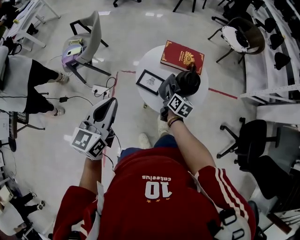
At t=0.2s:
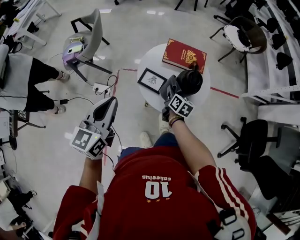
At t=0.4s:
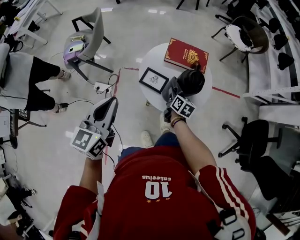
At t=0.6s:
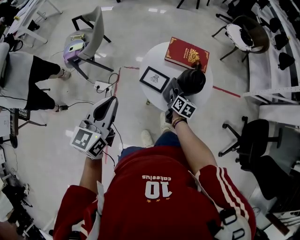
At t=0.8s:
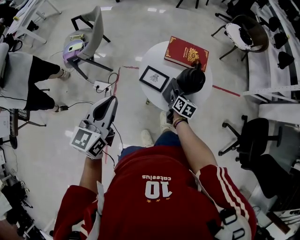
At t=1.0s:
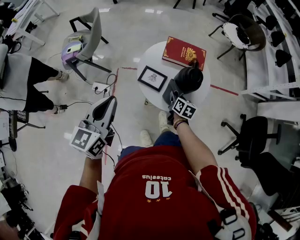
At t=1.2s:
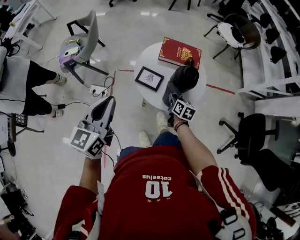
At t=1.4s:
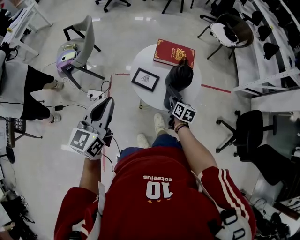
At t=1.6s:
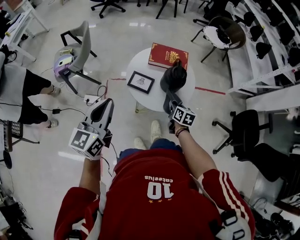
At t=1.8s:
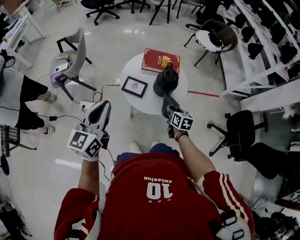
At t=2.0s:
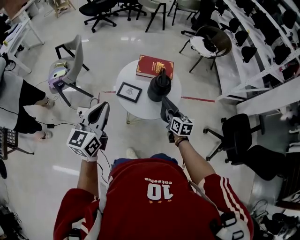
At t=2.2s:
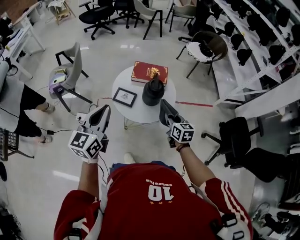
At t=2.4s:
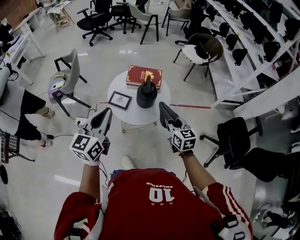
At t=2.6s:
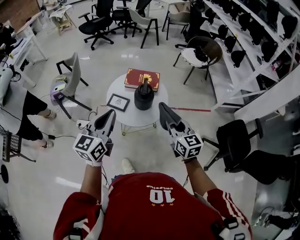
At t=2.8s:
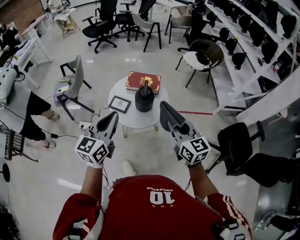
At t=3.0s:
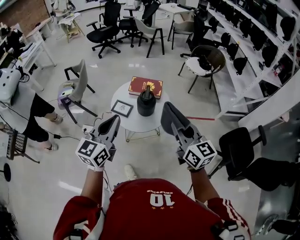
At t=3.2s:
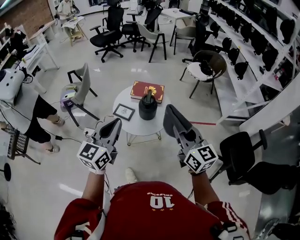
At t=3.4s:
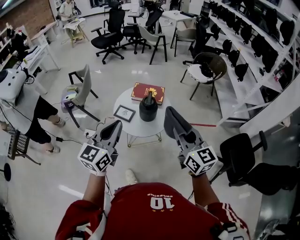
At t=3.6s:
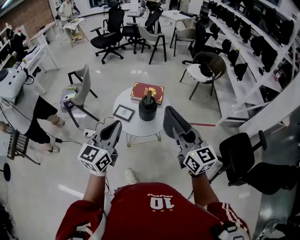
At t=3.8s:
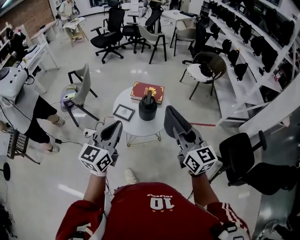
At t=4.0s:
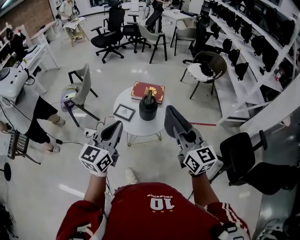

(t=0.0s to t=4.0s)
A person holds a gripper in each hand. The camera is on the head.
t=0.0s - t=1.4s: The right gripper is displaced backward and to the right by about 10 cm.
t=1.4s - t=2.6s: The right gripper shifts roughly 35 cm upward, to the right and backward, and swivels approximately 40 degrees; the left gripper heads to the right, covering about 20 cm.
t=2.6s - t=4.0s: The right gripper heads upward and backward, covering approximately 15 cm. Meanwhile the left gripper travels backward by roughly 5 cm.

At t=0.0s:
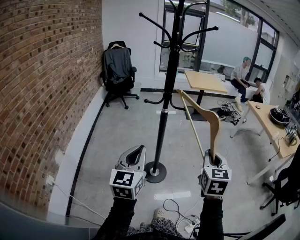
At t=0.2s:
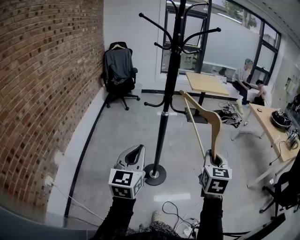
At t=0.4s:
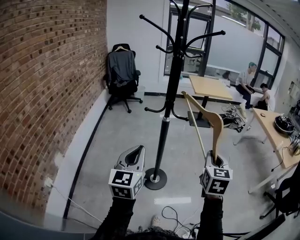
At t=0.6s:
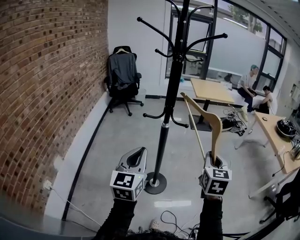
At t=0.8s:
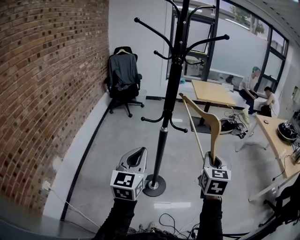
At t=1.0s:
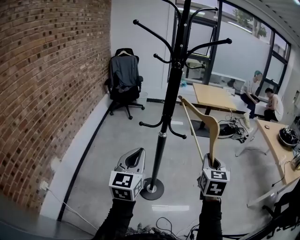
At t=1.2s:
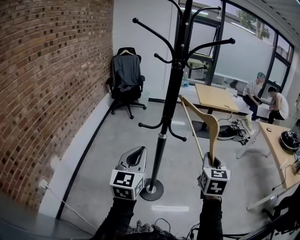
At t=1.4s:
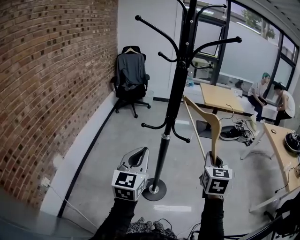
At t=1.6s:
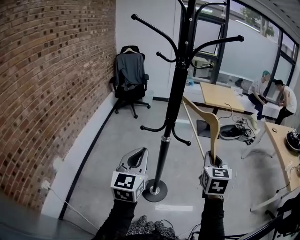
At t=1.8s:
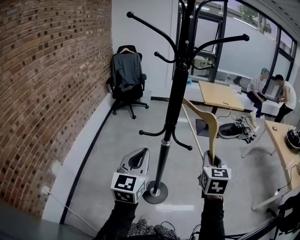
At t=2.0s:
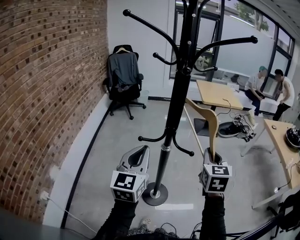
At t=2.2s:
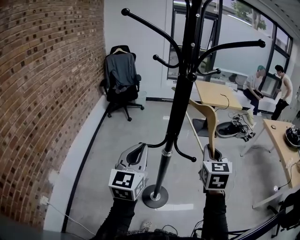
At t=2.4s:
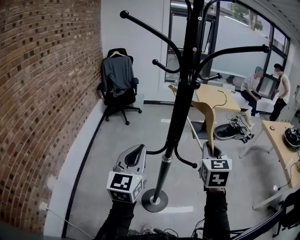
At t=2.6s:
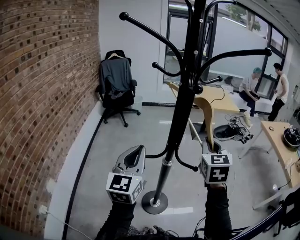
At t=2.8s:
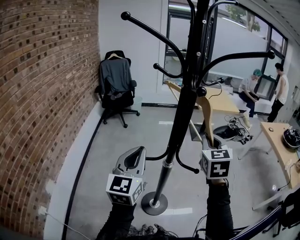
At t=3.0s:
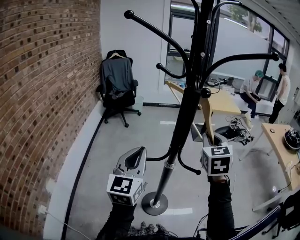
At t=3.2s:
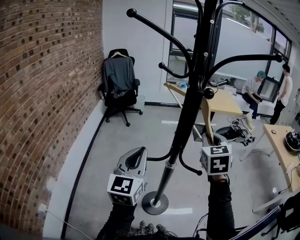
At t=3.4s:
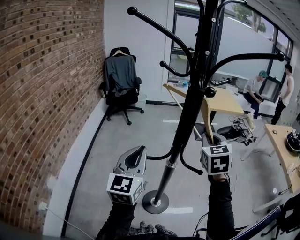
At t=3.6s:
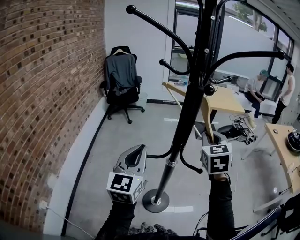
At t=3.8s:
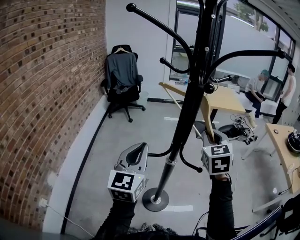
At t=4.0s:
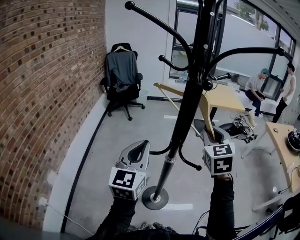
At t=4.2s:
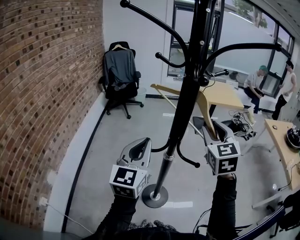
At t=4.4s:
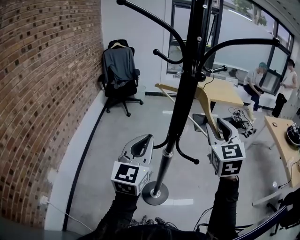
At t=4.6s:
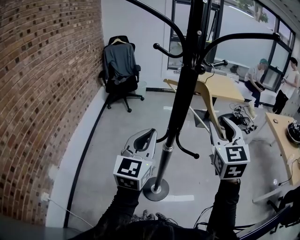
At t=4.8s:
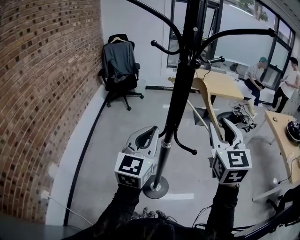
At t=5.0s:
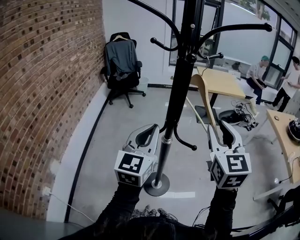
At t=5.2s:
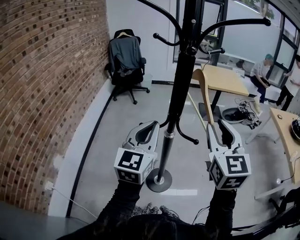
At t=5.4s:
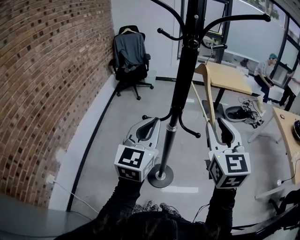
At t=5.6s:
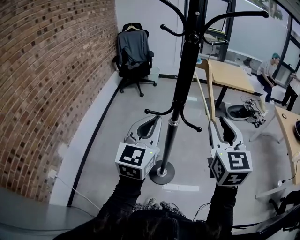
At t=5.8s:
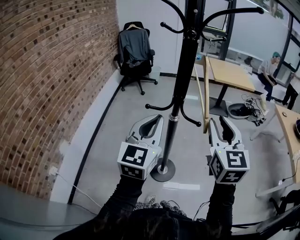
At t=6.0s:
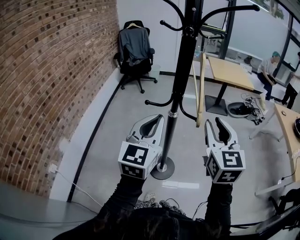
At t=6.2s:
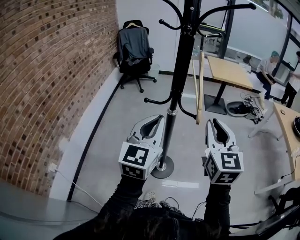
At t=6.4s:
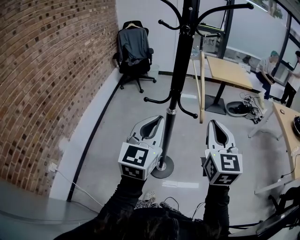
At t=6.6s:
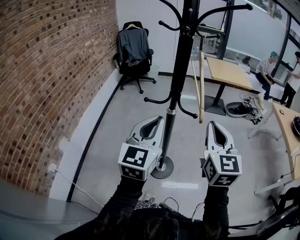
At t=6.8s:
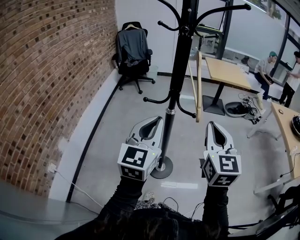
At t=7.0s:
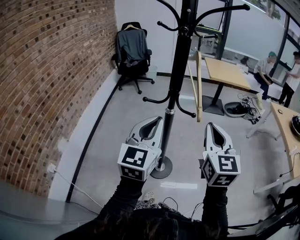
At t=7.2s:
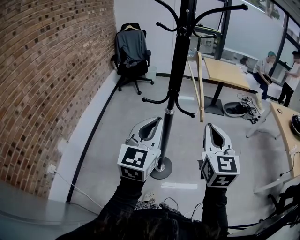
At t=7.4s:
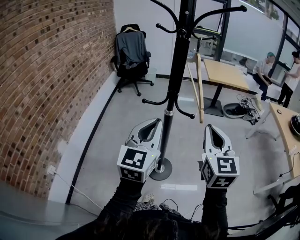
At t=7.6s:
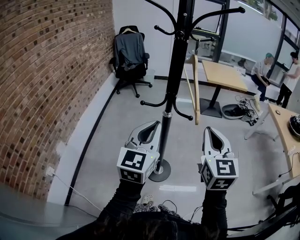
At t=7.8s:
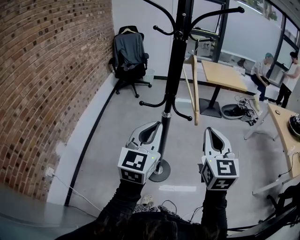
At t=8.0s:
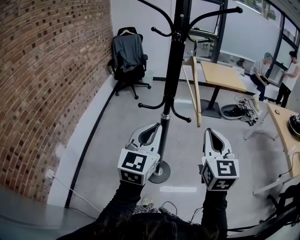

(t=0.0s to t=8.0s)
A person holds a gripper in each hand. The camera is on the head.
t=0.0s - t=1.6s: The two grippers go some 20 cm forward.
t=1.6s - t=3.2s: The two grippers go some 15 cm forward and to the left.
t=3.2s - t=4.8s: The left gripper is displaced to the right by about 5 cm. Meanwhile the right gripper travels backward and upward by roughly 10 cm, and opens up.
t=4.8s - t=6.4s: The right gripper travels backward and downward by roughly 15 cm, and closes up. The left gripper is displaced backward by approximately 15 cm.
t=6.4s - t=8.0s: The grippers move only a little.

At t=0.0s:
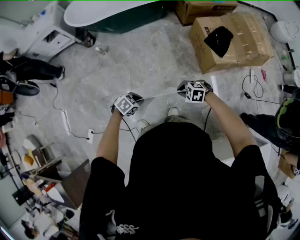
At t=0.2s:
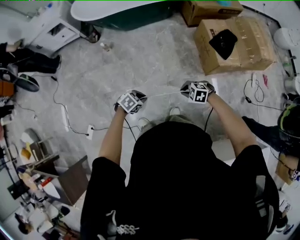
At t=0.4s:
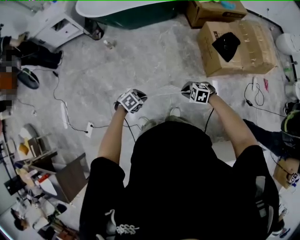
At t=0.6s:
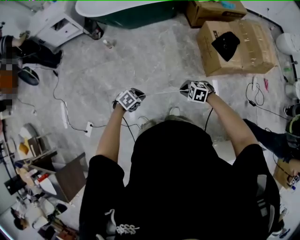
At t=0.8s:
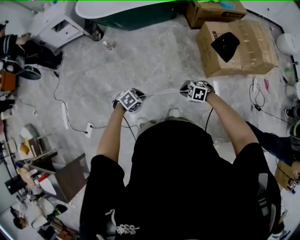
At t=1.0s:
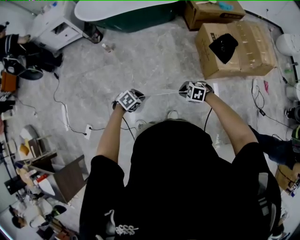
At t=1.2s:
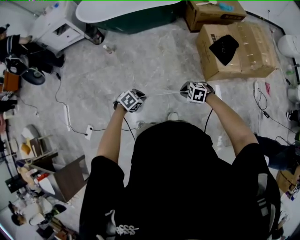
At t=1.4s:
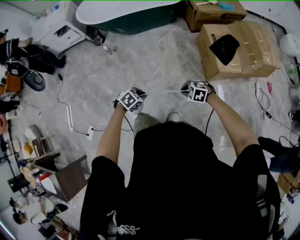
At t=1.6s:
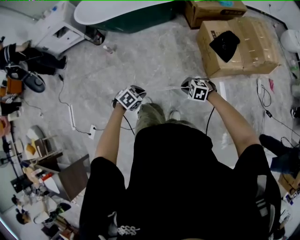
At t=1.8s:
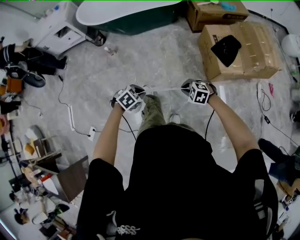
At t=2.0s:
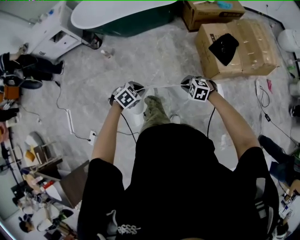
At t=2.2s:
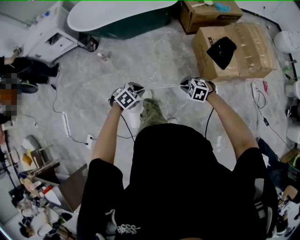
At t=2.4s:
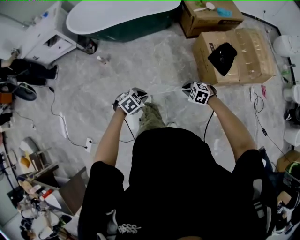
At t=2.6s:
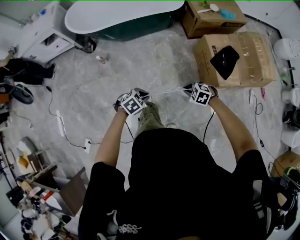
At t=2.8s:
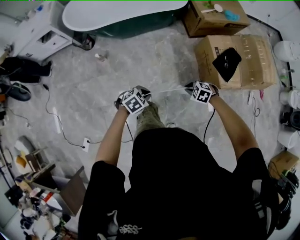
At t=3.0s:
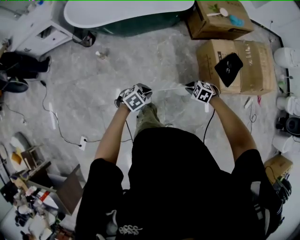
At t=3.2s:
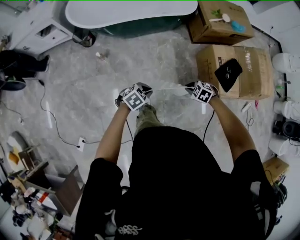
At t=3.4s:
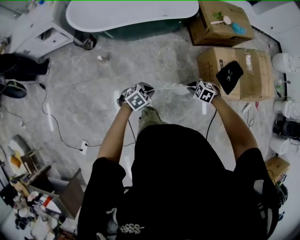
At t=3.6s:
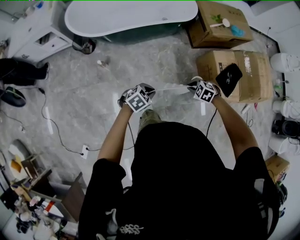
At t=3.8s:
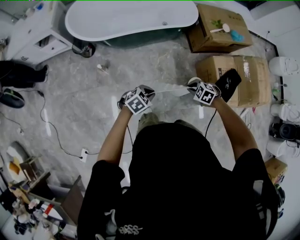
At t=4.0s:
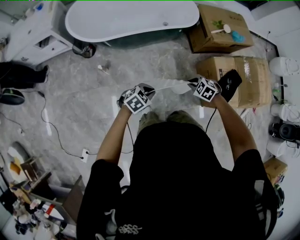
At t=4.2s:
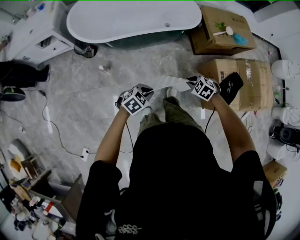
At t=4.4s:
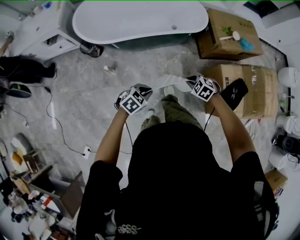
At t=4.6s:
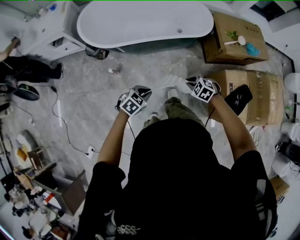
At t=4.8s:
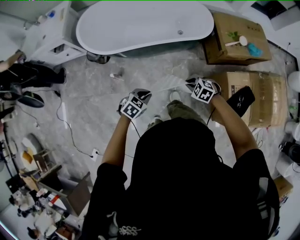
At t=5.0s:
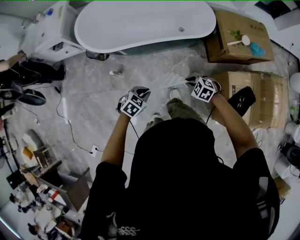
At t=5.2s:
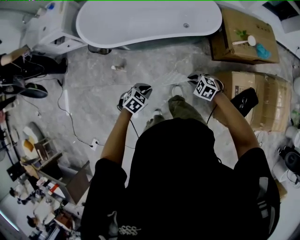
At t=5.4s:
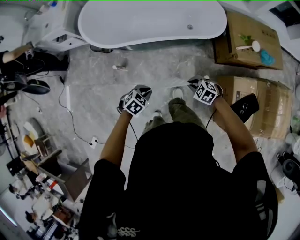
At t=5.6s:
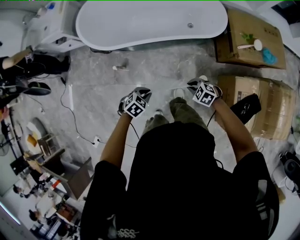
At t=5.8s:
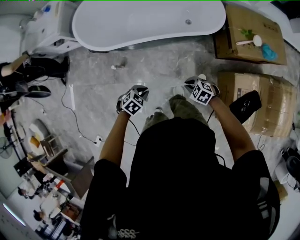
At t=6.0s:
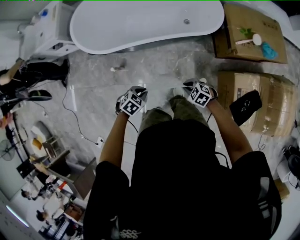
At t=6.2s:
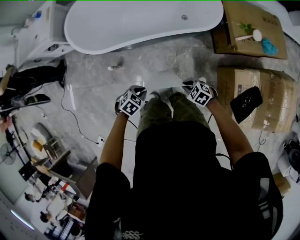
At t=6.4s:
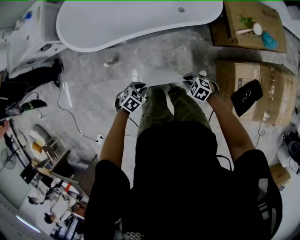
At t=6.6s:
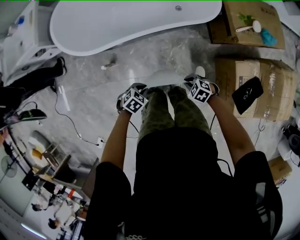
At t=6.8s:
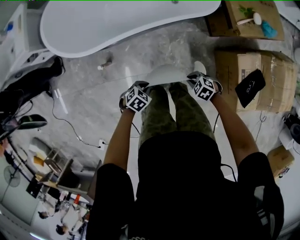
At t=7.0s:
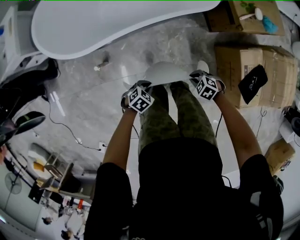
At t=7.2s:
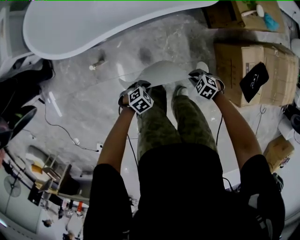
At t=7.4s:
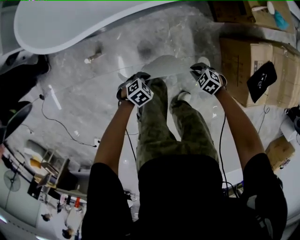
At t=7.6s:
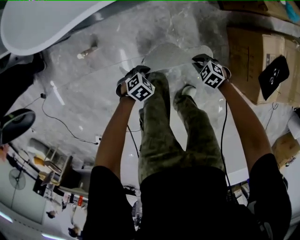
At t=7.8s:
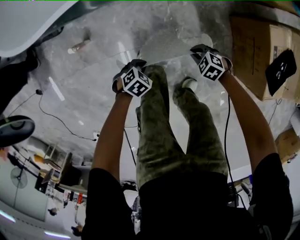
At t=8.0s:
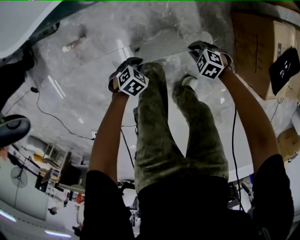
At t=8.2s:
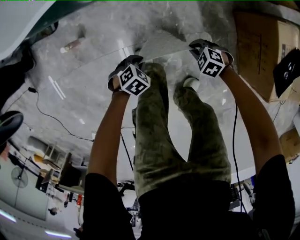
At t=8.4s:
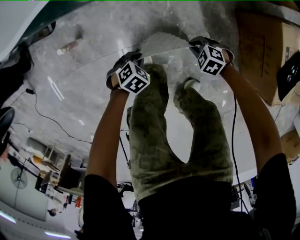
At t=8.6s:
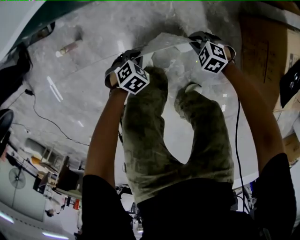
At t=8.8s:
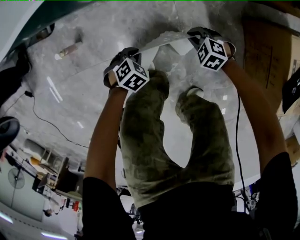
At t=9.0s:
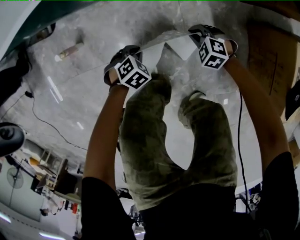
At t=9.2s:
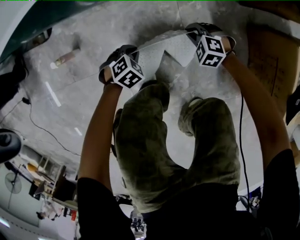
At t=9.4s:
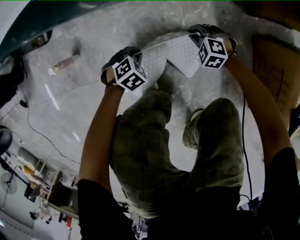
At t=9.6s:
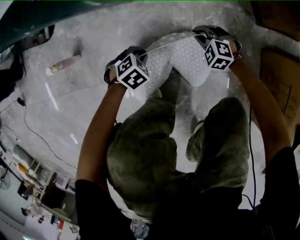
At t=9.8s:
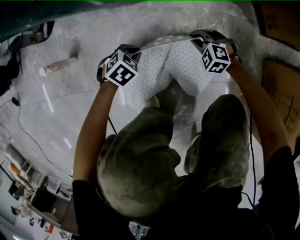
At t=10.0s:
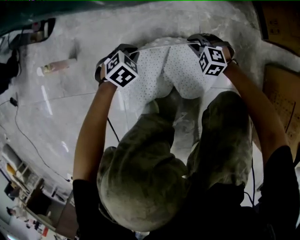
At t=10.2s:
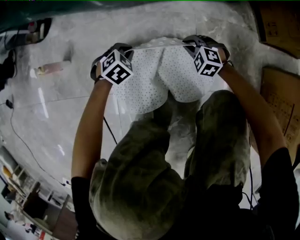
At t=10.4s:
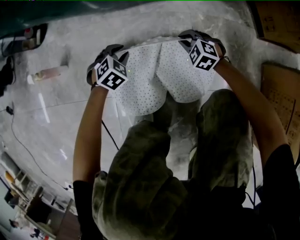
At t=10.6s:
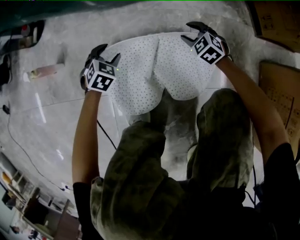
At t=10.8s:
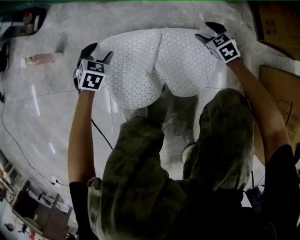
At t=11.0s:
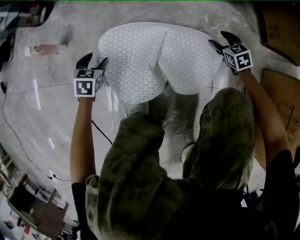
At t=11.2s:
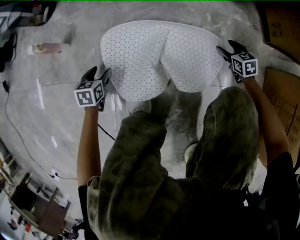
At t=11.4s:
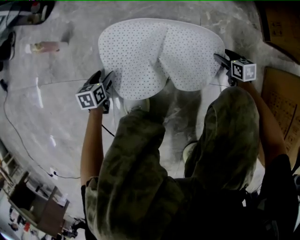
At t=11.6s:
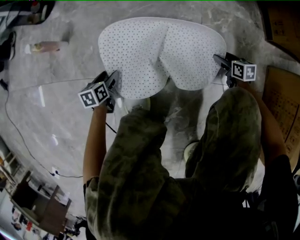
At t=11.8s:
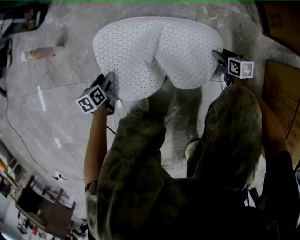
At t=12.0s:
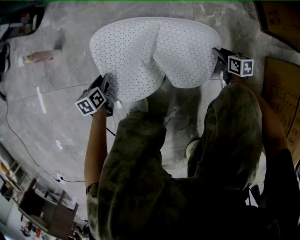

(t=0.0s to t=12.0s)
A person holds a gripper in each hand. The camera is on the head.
t=0.0s - t=1.6s: The left gripper ends up roughly 5 cm from where it was. The right gripper shifts by about 5 cm.
t=1.6s - t=3.0s: The left gripper changes place by about 30 cm. The right gripper shifts by roughly 30 cm.
t=3.0s - t=4.4s: The left gripper changes place by some 25 cm. Meanwhile the right gripper changes place by some 25 cm.
t=4.4s - t=6.0s: The left gripper shifts by about 20 cm, and rotates about 20 degrees, while the right gripper ends up about 20 cm from where it was.
t=6.0s - t=7.6s: The grippers both shift downward by about 40 cm.
t=7.6s - t=9.0s: The two grippers go some 20 cm downward. The right gripper rotates some 20 degrees.
t=9.0s - t=10.4s: Both grippers move downward, approximately 20 cm.
t=10.4s - t=12.0s: The right gripper moves to the right and backward, approximately 20 cm, rolls clockwise, seen from behind, by about 70 degrees, and opens, then closes once more. The left gripper heads backward, to the left and downward, covering roughly 20 cm, rotates around the line of its fingers by approximately 70 degrees, counterclockwise from behind, and opens, then closes once more.
